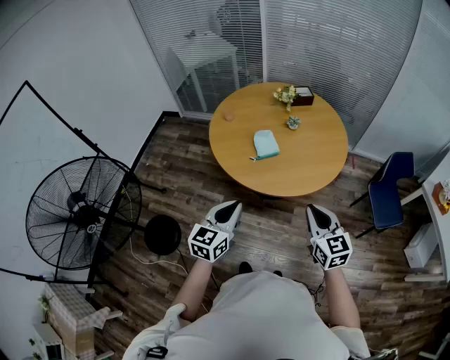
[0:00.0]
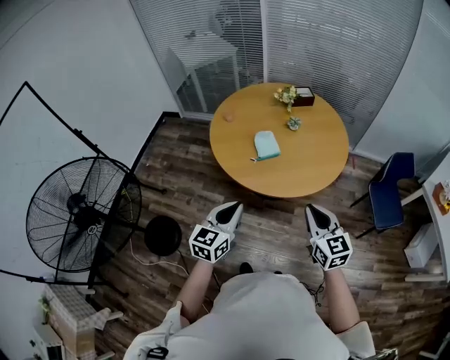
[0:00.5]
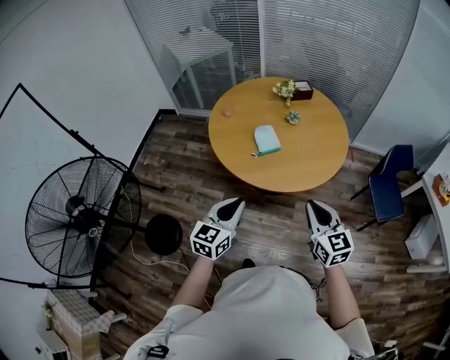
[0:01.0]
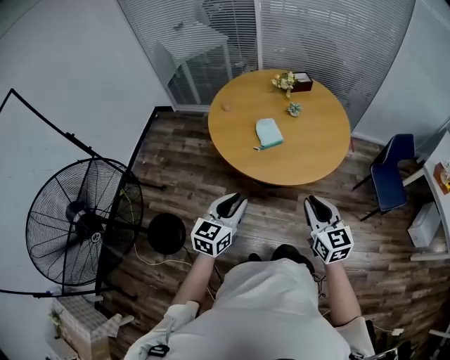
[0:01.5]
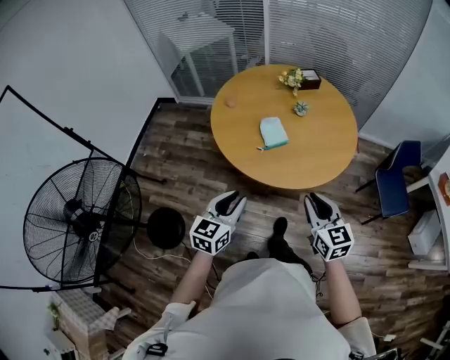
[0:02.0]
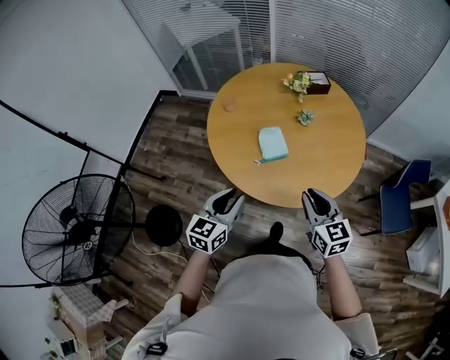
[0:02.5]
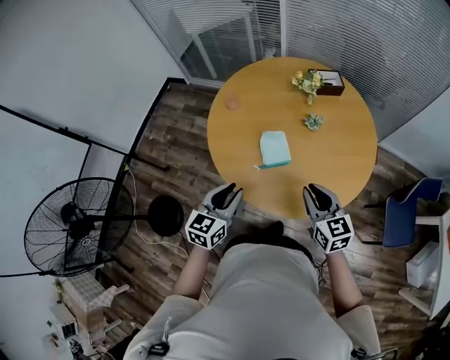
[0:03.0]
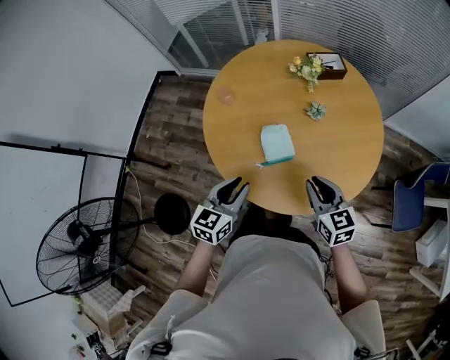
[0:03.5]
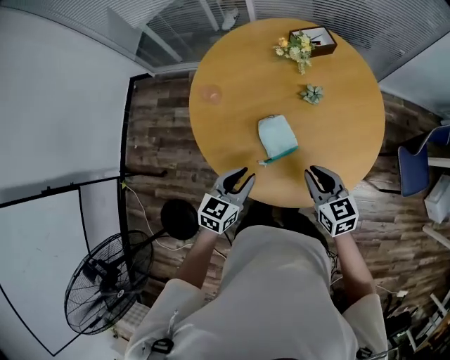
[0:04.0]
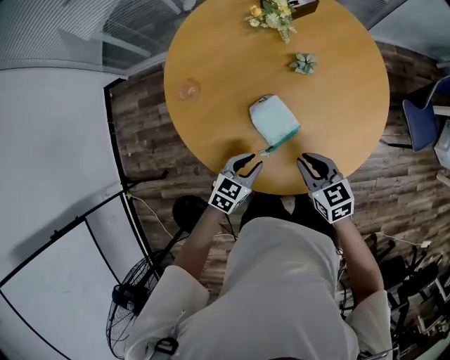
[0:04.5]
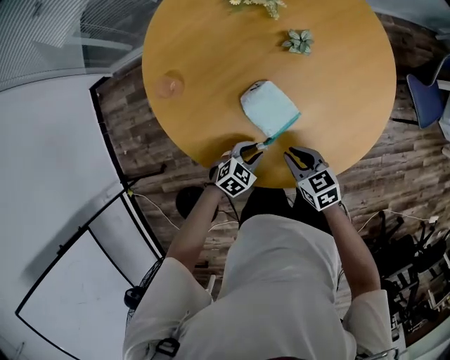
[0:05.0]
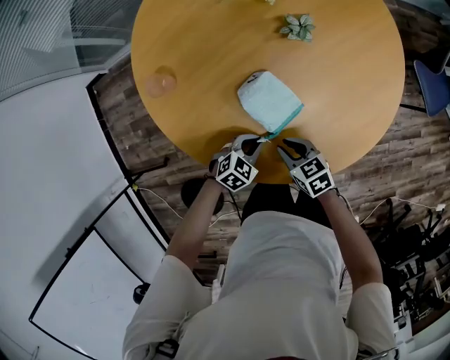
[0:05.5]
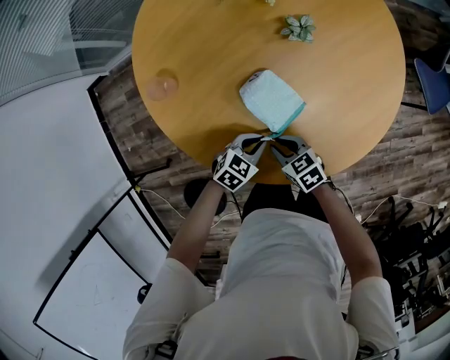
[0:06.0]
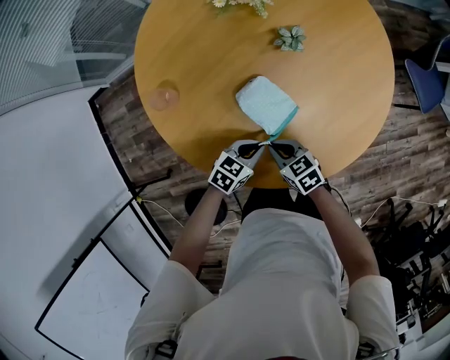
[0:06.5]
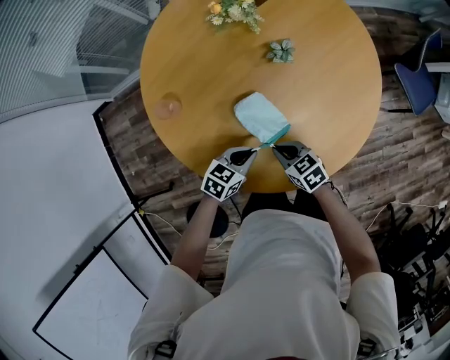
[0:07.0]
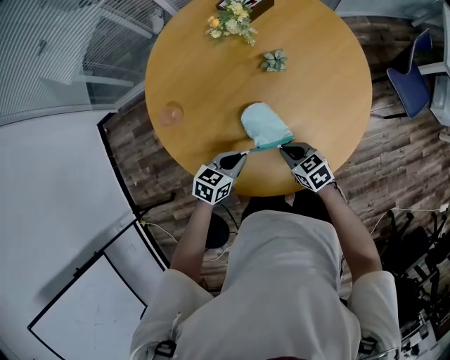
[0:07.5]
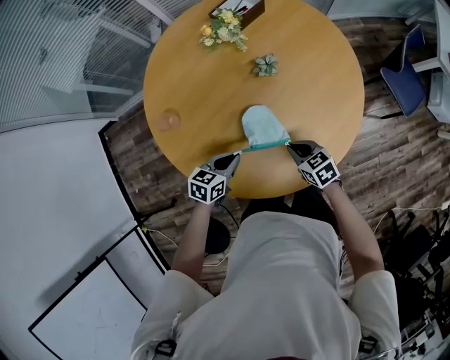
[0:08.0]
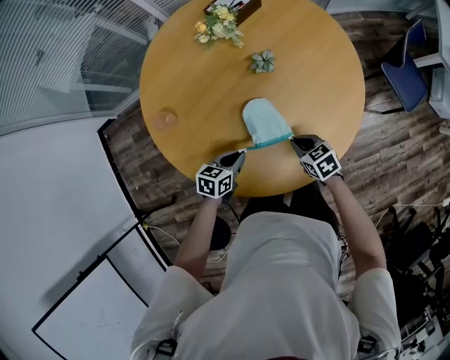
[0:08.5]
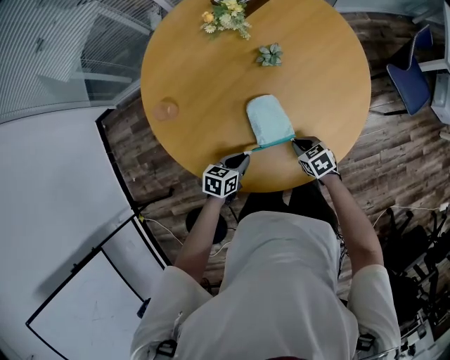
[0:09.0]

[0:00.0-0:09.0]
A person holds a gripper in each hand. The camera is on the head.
0:00.0 to 0:02.0: The two grippers go about 10 cm to the left and forward.
0:02.0 to 0:04.5: The right gripper changes place by approximately 40 cm, and turns by some 30 degrees. Meanwhile the left gripper changes place by roughly 50 cm, and rotates about 40 degrees.
0:04.5 to 0:07.0: The left gripper travels downward and back again, about 15 cm each way. Meanwhile the right gripper heads downward, covering some 10 cm.
0:07.0 to 0:09.0: The right gripper changes place by roughly 10 cm, while the left gripper changes place by approximately 5 cm.

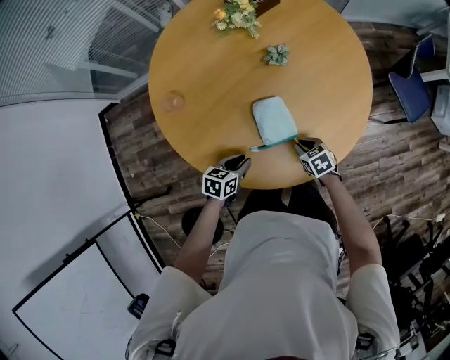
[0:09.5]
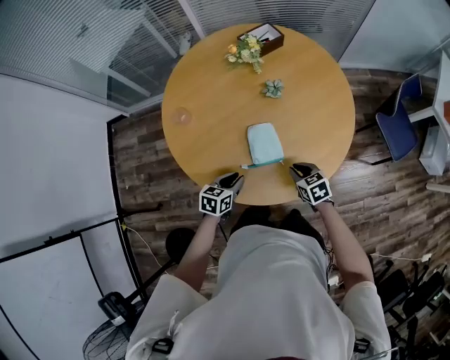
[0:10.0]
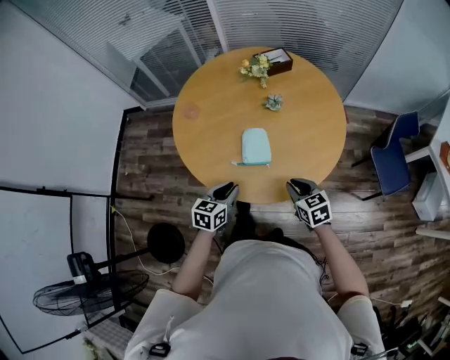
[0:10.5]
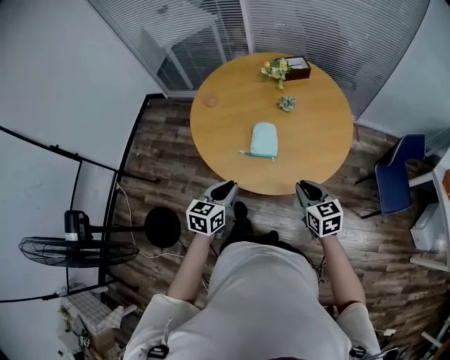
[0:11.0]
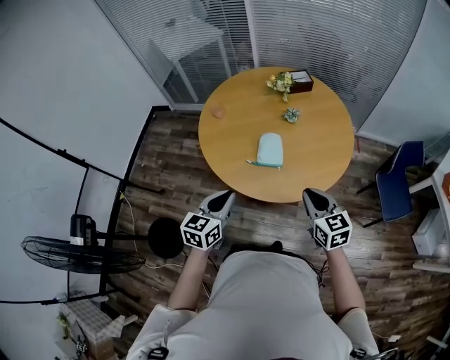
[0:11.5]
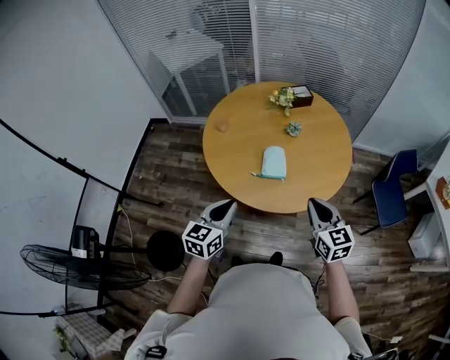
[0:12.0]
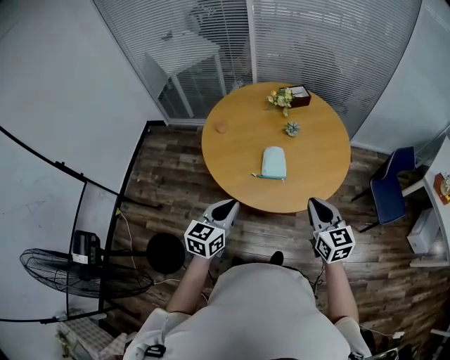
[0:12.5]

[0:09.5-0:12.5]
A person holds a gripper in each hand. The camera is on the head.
0:09.5 to 0:11.0: Both grippers move upward and backward, some 35 cm. The left gripper changes its angle by some 40 degrees; the right gripper swivels some 30 degrees.
0:11.0 to 0:12.5: The left gripper goes approximately 15 cm upward and to the left. Meanwhile the right gripper goes some 15 cm upward, to the left and backward.

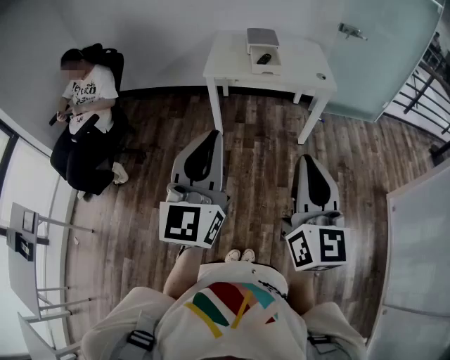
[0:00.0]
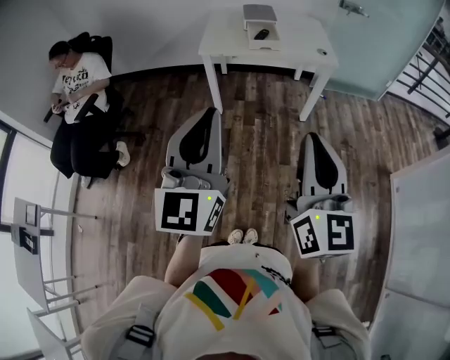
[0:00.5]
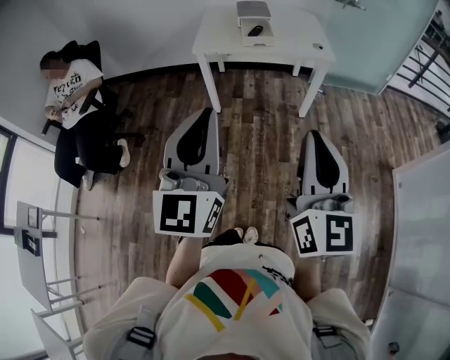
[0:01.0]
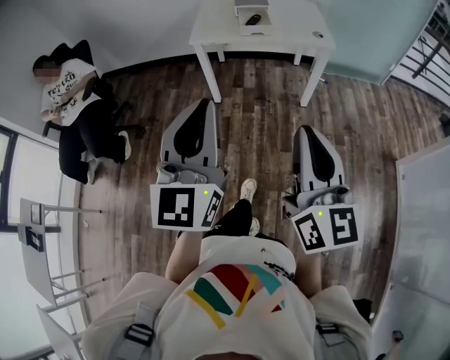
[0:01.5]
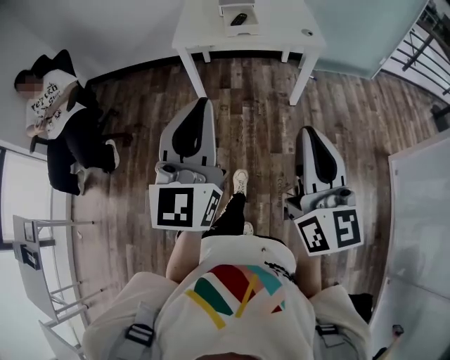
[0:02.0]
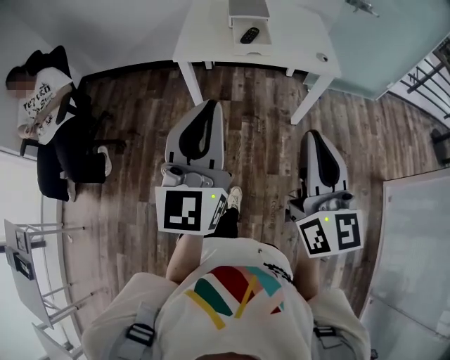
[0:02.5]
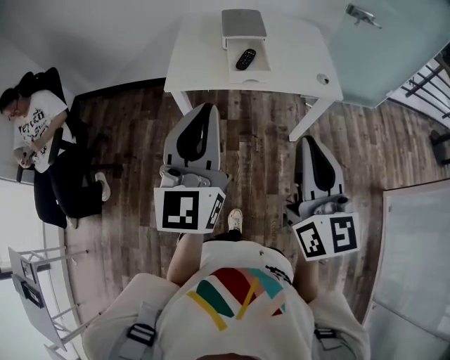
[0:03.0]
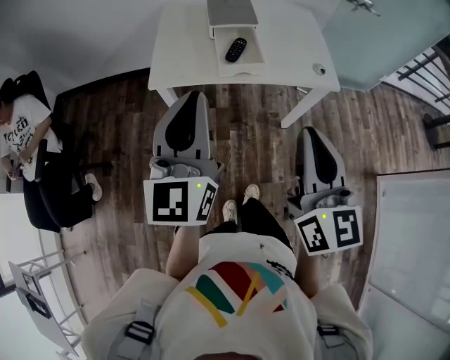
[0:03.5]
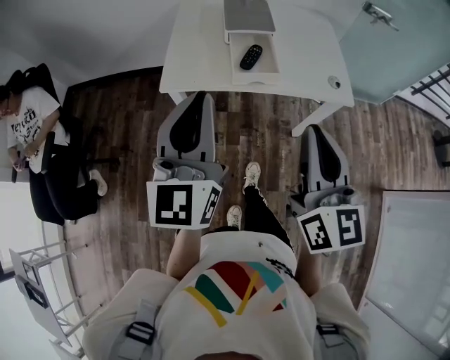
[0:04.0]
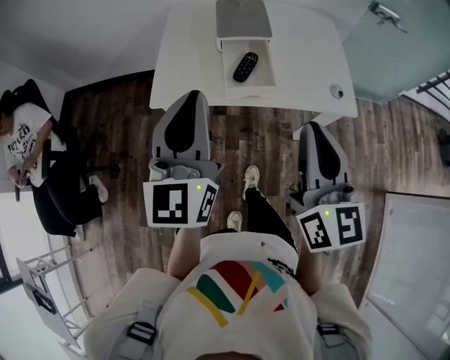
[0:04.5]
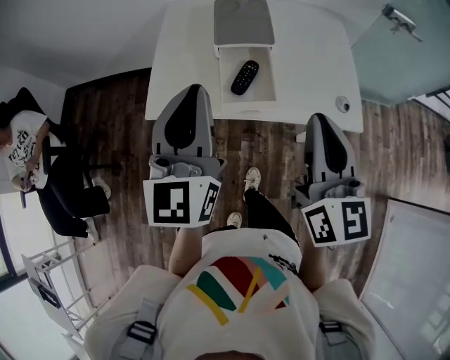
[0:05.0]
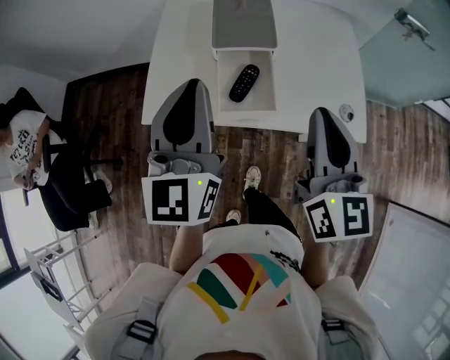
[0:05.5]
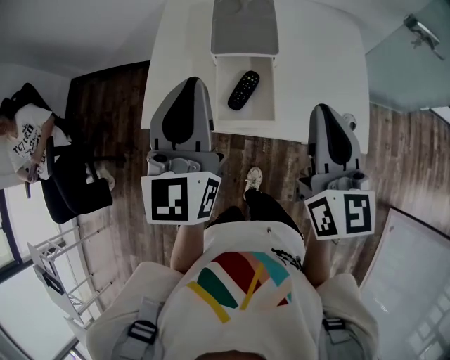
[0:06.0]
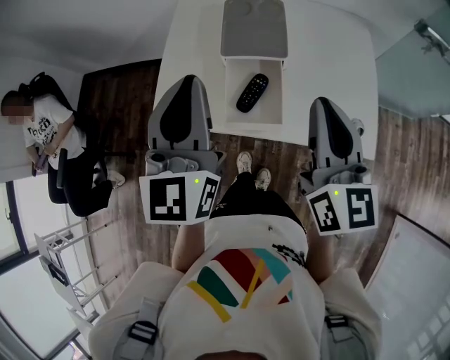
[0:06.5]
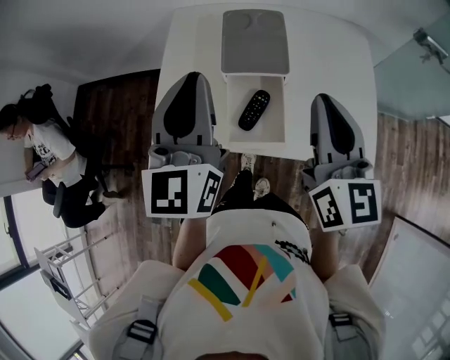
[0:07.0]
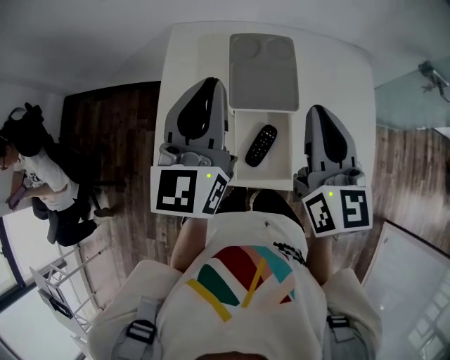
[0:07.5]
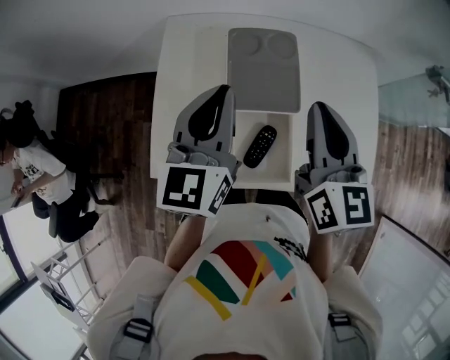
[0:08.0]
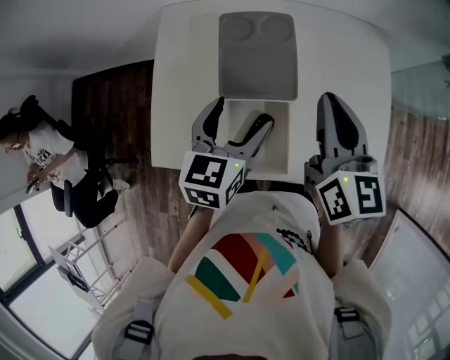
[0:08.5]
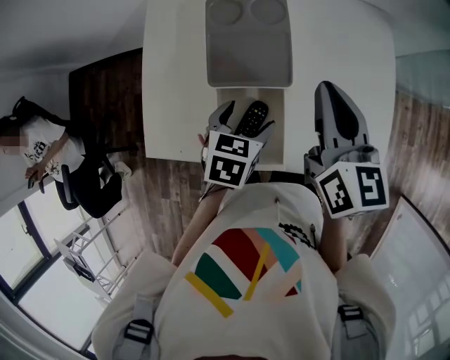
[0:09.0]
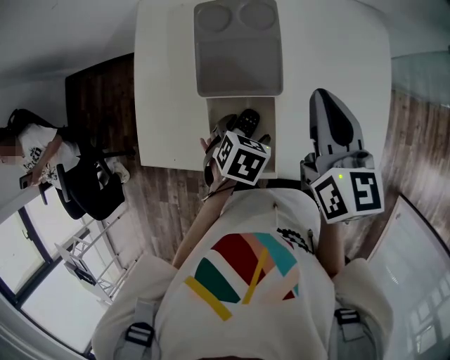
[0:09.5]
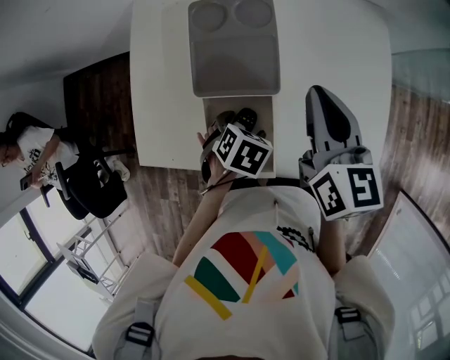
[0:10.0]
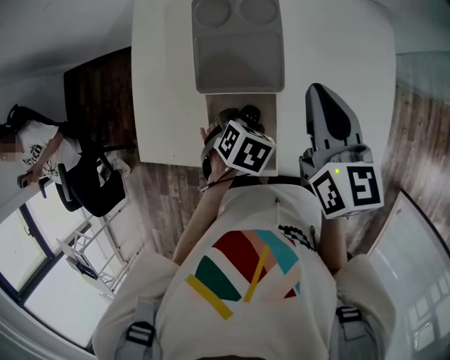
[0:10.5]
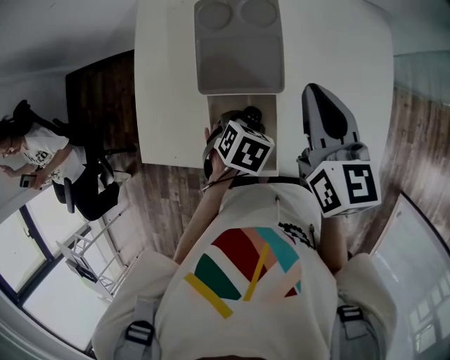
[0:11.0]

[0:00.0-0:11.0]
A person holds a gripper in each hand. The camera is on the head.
0:00.0 to 0:02.0: The left gripper shifts some 10 cm forward and to the right. The right gripper travels to the right and forward by roughly 10 cm.
0:02.0 to 0:03.5: Both grippers travel together forward, some 35 cm.
0:03.5 to 0:05.5: Both grippers move forward, roughly 25 cm.
0:05.5 to 0:07.5: Both grippers travel together forward, roughly 20 cm.
0:07.5 to 0:09.0: The left gripper is displaced downward and to the right by about 30 cm, angles its fingers downward, by about 50 degrees, and opens up; the right gripper heads downward, to the right and forward, covering some 10 cm.
0:09.0 to 0:11.0: The left gripper moves downward, roughly 5 cm, turns by approximately 20 degrees, and closes.

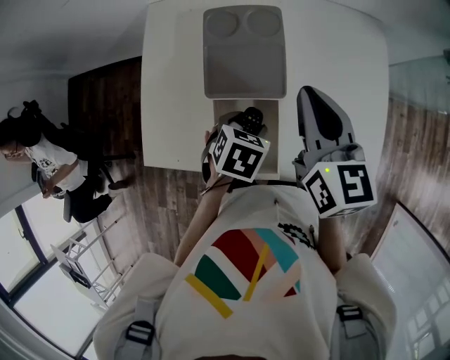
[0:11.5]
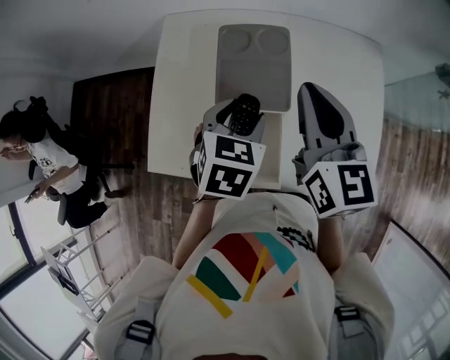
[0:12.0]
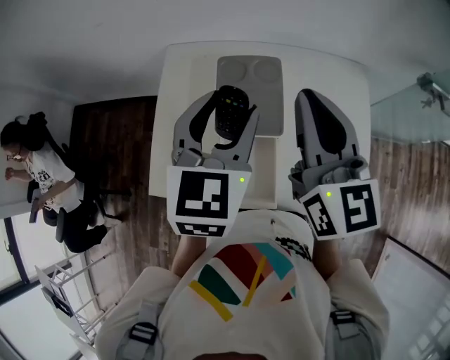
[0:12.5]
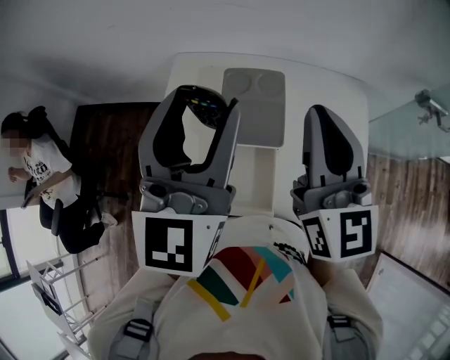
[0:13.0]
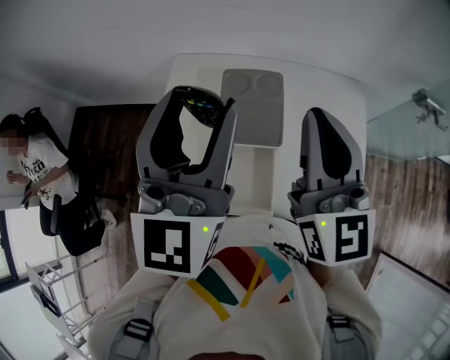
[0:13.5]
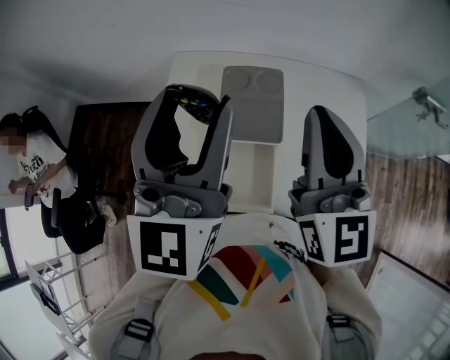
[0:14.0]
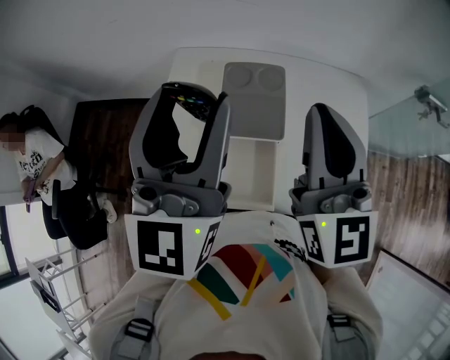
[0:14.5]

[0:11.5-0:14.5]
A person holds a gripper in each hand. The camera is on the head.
0:11.5 to 0:13.0: The right gripper is displaced upward by about 15 cm, and rotates some 30 degrees. The left gripper travels upward by approximately 40 cm, and points its fingers about 70 degrees further upward.
0:13.0 to 0:14.5: The grippers stay close to where they were, moving slightly.
